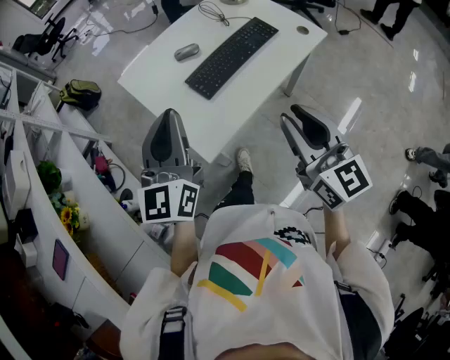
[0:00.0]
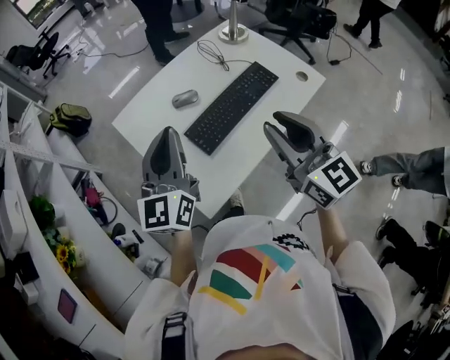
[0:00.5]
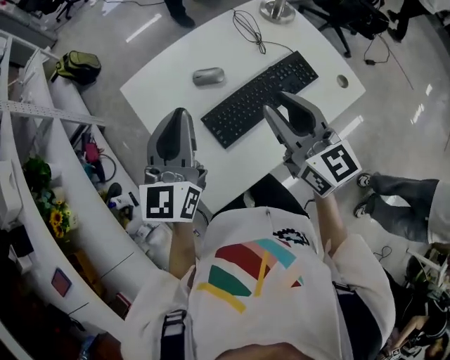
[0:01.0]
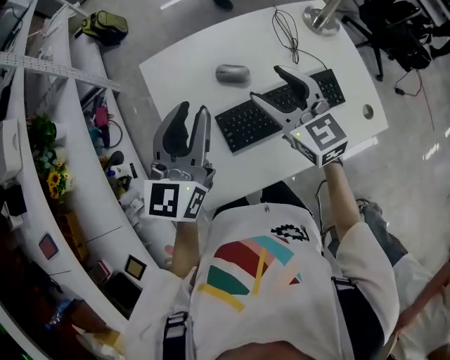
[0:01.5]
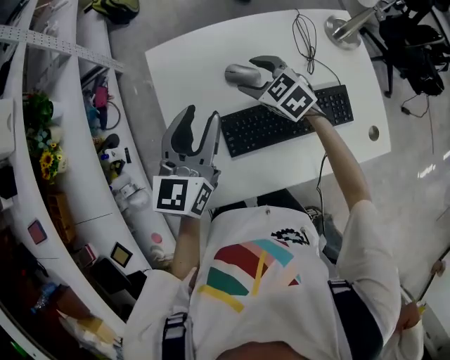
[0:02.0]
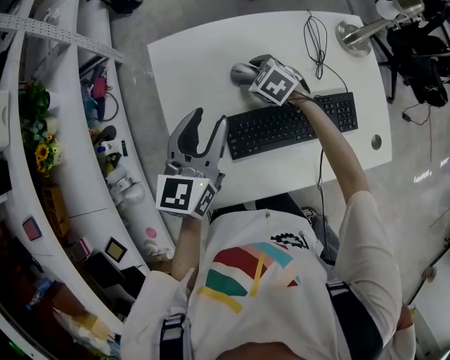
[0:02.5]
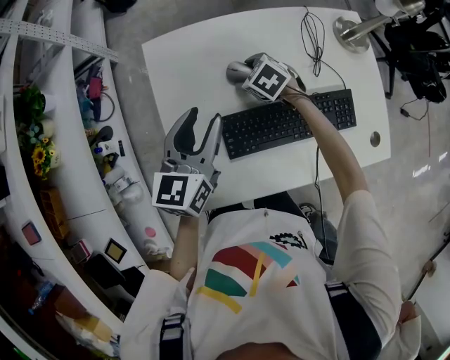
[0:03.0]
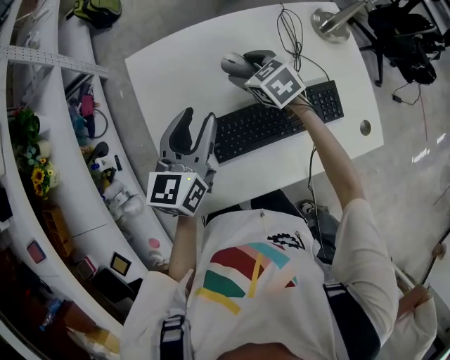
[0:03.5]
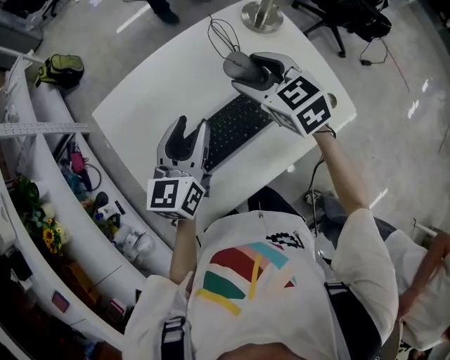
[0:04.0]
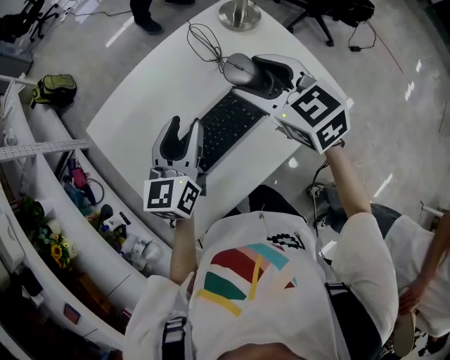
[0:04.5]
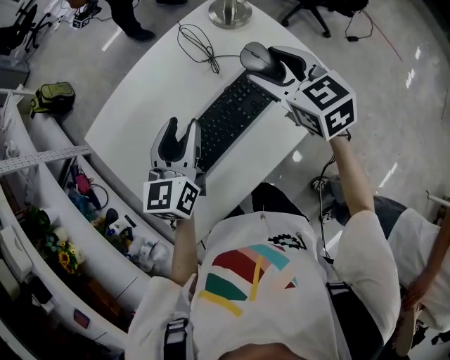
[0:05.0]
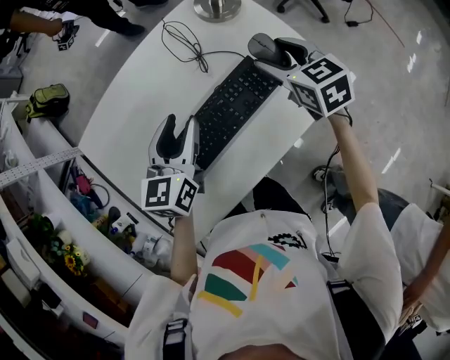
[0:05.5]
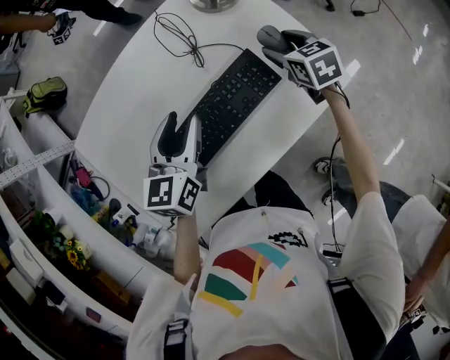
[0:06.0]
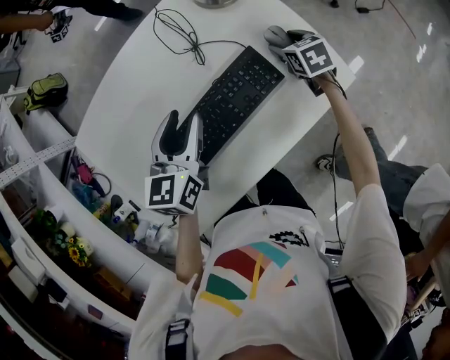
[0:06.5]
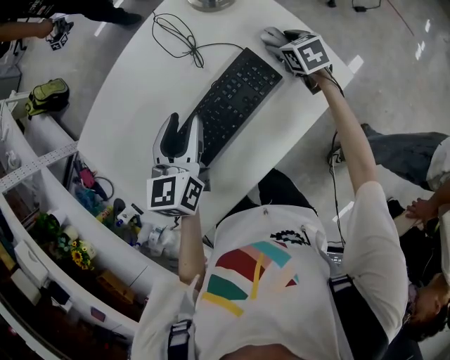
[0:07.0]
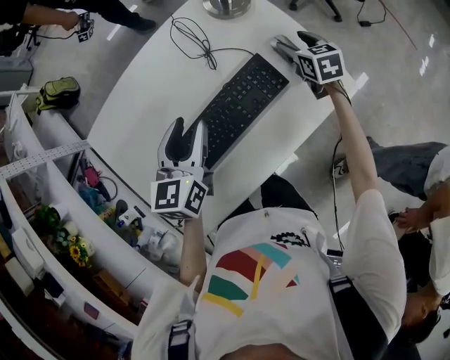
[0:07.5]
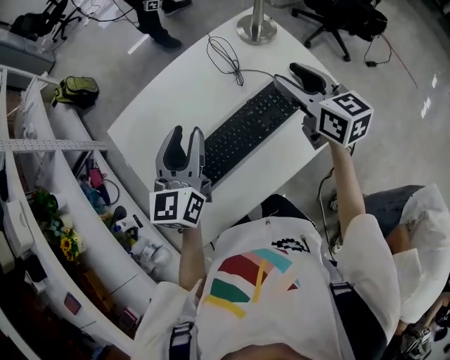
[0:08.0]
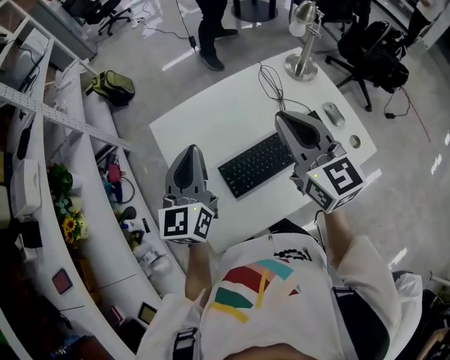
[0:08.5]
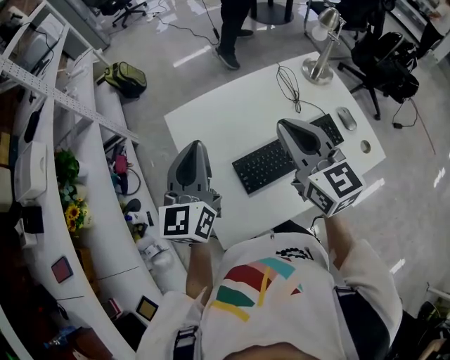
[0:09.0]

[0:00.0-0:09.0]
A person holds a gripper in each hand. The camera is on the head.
0:00.0 to 0:02.0: The right gripper changes place by some 50 cm, points its fingers about 40 degrees further downward, and opens. Meanwhile the left gripper ends up roughly 30 cm from where it was, turns by roughly 30 degrees, and opens.
0:02.0 to 0:04.5: The left gripper ends up roughly 15 cm from where it was, and rotates some 20 degrees. Meanwhile the right gripper changes place by roughly 25 cm, and turns by approximately 30 degrees.
0:04.5 to 0:07.0: The right gripper heads downward, to the right and forward, covering roughly 35 cm, and swivels about 30 degrees; the left gripper travels to the right and downward by approximately 10 cm.
0:07.0 to 0:09.0: The right gripper travels to the left, upward and backward by some 50 cm, tilts its fingers approximately 50 degrees upward, and closes its fingers. Meanwhile the left gripper shifts approximately 35 cm to the left, upward and backward, rotates about 30 degrees, and closes its fingers.

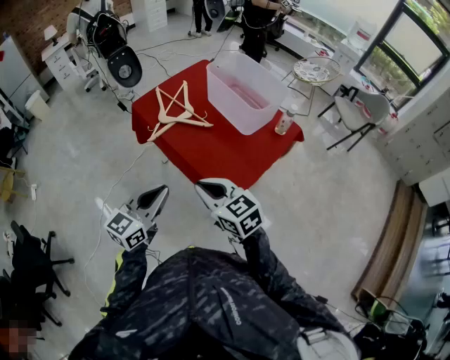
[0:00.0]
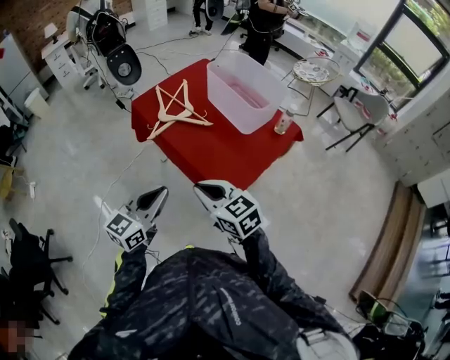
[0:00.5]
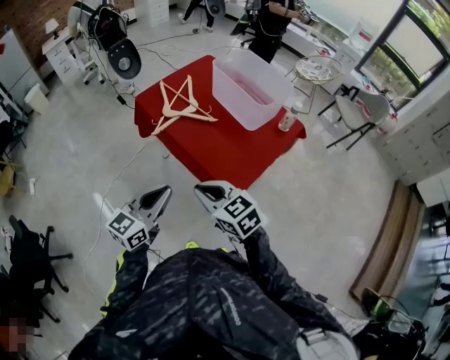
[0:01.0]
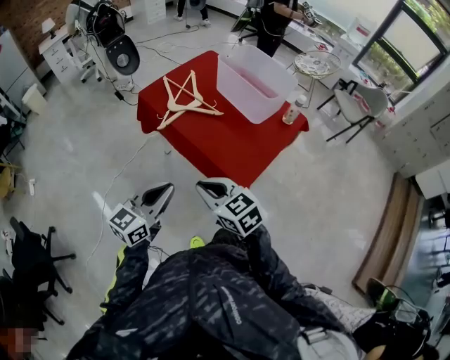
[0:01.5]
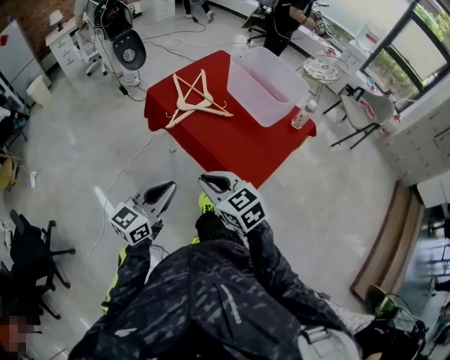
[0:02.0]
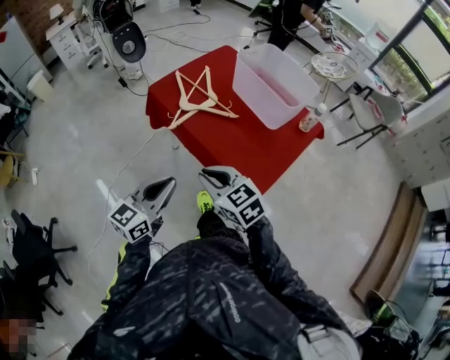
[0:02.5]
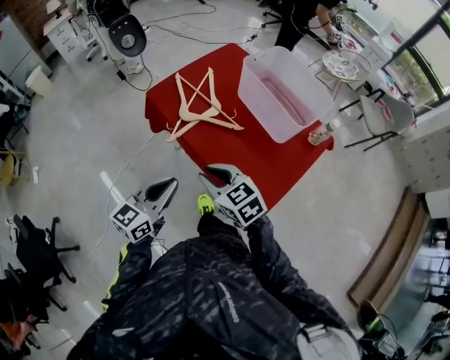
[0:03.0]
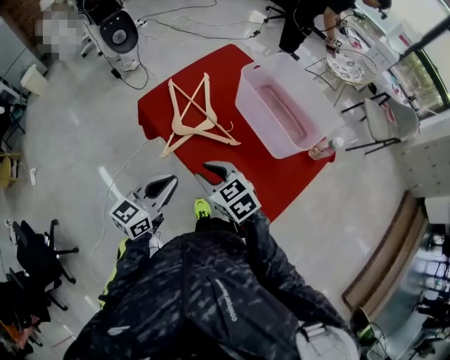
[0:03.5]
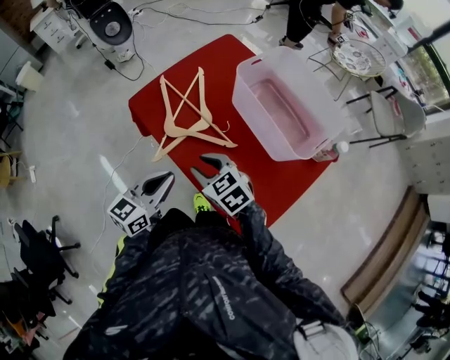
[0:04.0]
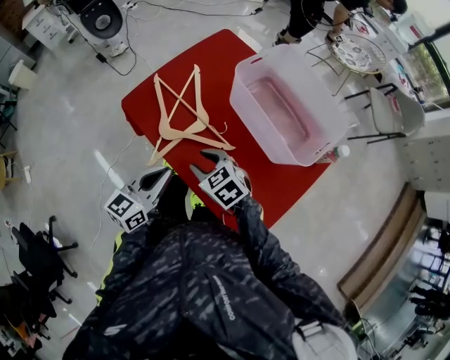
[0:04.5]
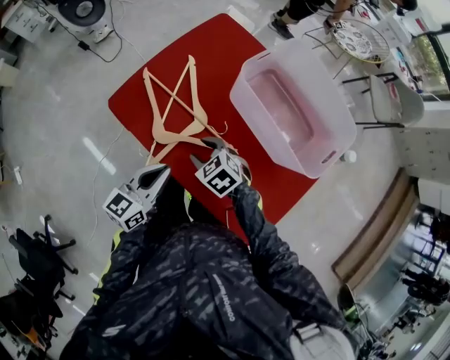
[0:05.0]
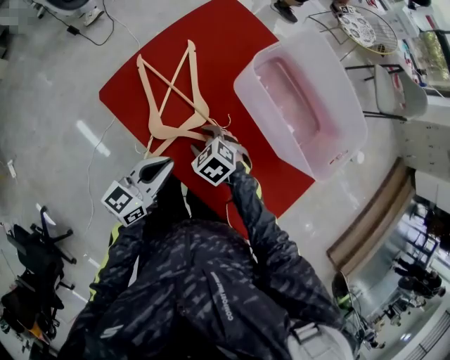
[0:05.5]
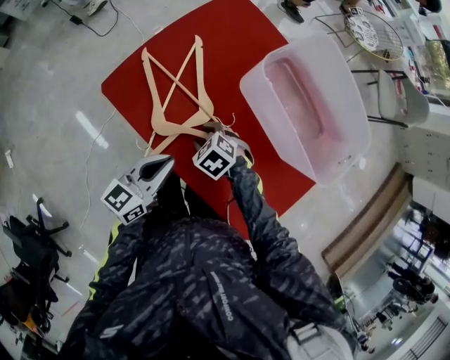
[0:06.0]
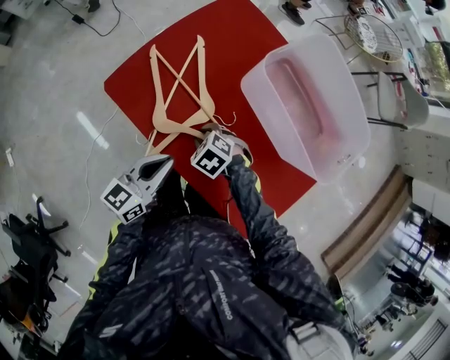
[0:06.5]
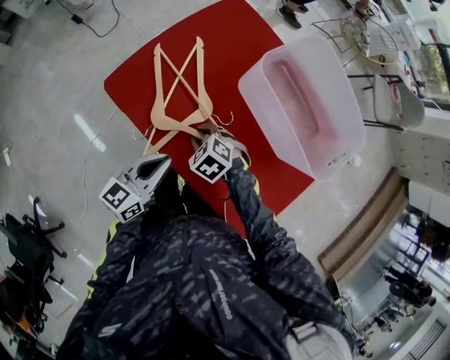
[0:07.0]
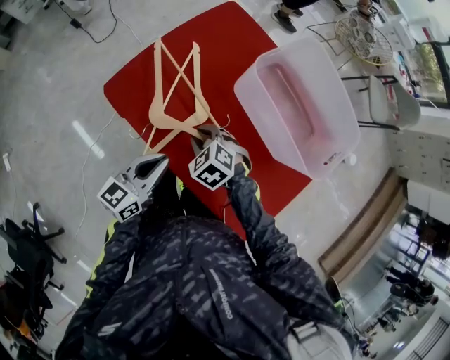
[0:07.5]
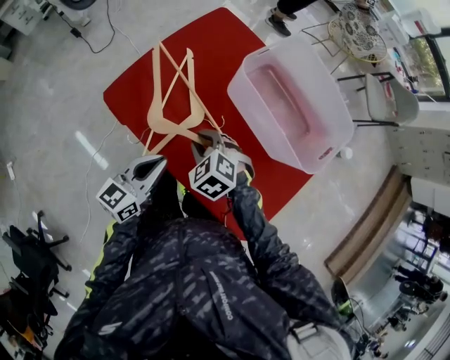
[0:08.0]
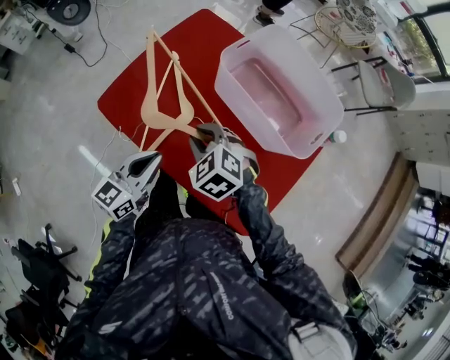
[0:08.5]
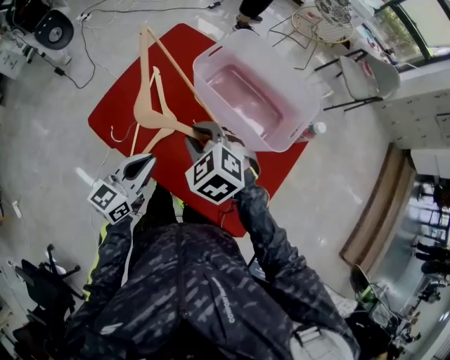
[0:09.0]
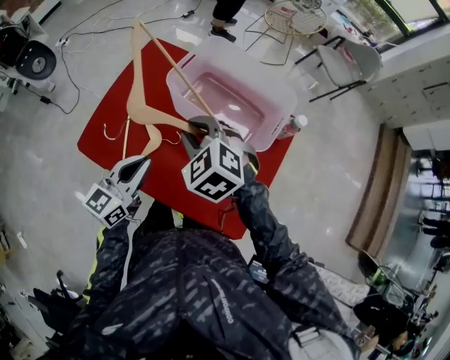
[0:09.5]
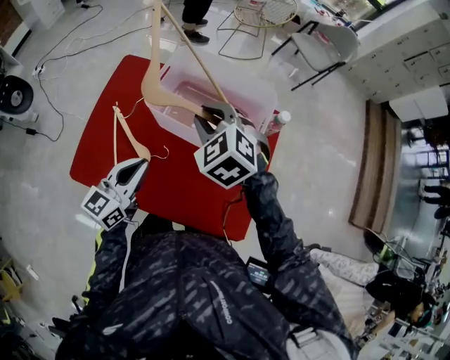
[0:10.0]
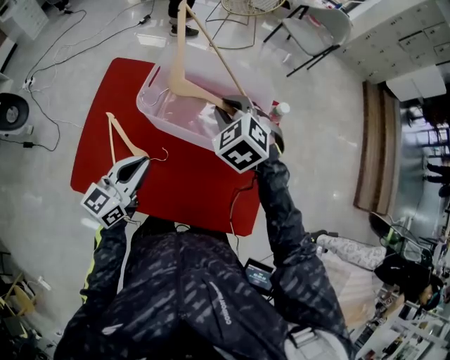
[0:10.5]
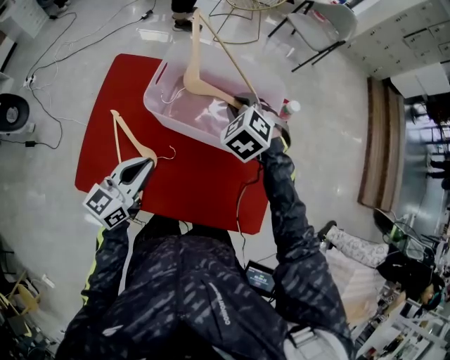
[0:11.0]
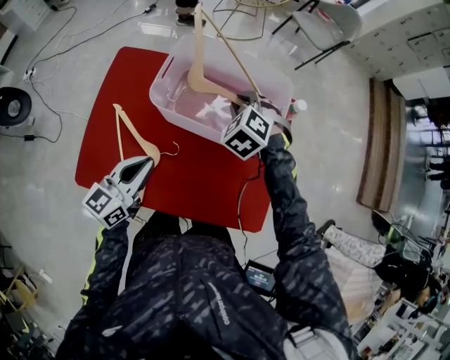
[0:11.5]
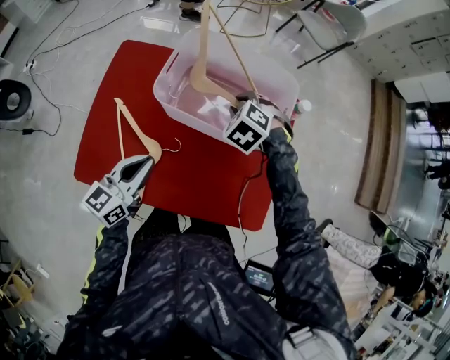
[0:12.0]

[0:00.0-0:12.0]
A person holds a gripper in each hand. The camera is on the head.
0:00.0 to 0:02.0: Both grippers travel together to the left, approximately 10 cm.
0:02.0 to 0:04.0: The two grippers go roughly 35 cm forward. The right gripper opens its fingers.
0:04.0 to 0:06.0: The right gripper travels downward and forward by approximately 25 cm, and changes its angle by approximately 30 degrees, while the left gripper travels forward and downward by about 15 cm.
0:06.0 to 0:08.0: The right gripper is displaced upward by some 10 cm, and closes.
0:08.0 to 0:10.0: The left gripper moves approximately 20 cm, and turns by some 20 degrees. The right gripper changes place by roughly 30 cm, and turns by about 30 degrees.
0:10.0 to 0:12.0: The left gripper ends up some 5 cm from where it was. Meanwhile the right gripper moves downward and forward, some 15 cm, and changes its angle by some 20 degrees.

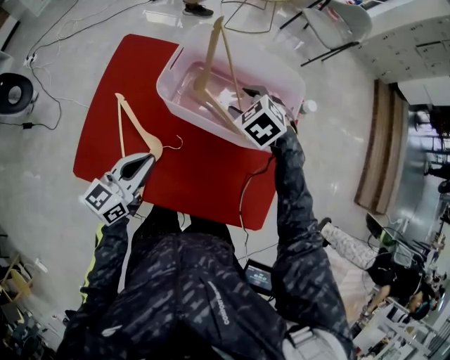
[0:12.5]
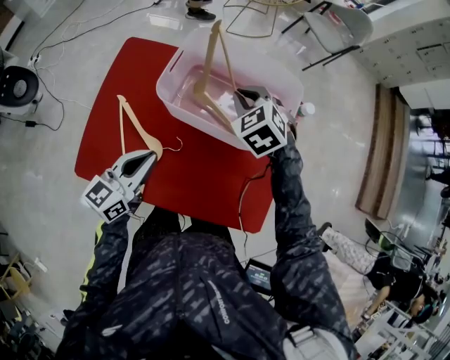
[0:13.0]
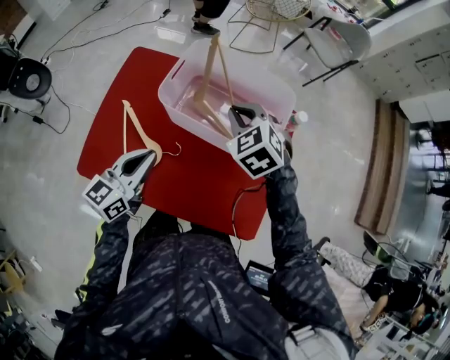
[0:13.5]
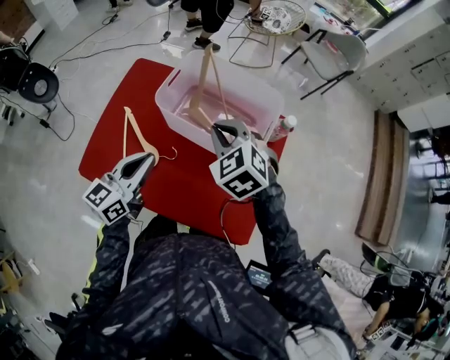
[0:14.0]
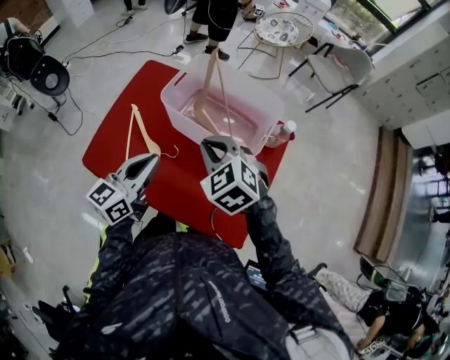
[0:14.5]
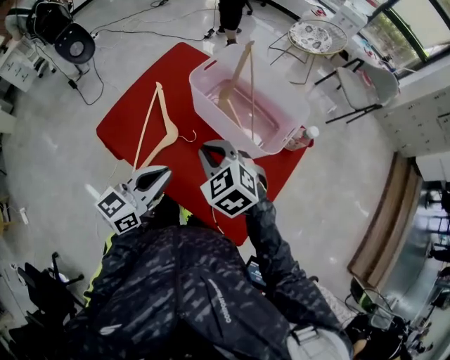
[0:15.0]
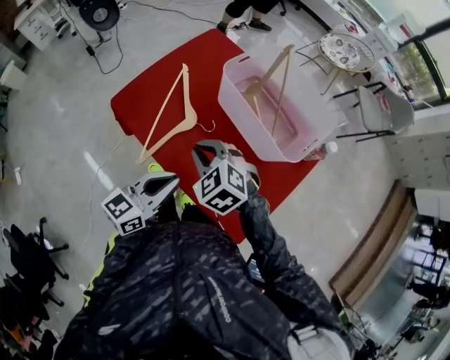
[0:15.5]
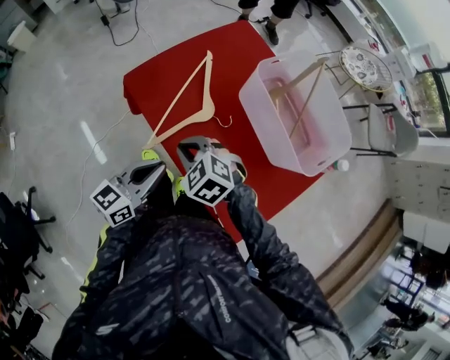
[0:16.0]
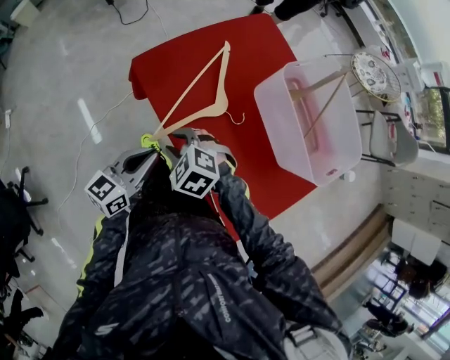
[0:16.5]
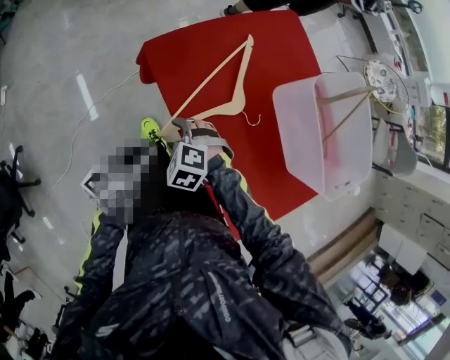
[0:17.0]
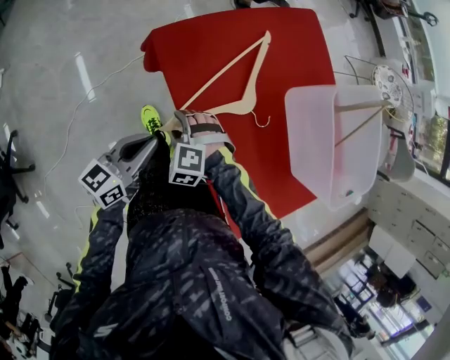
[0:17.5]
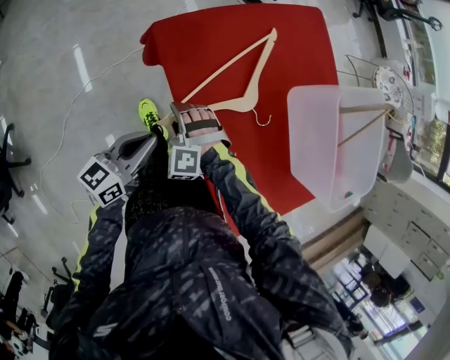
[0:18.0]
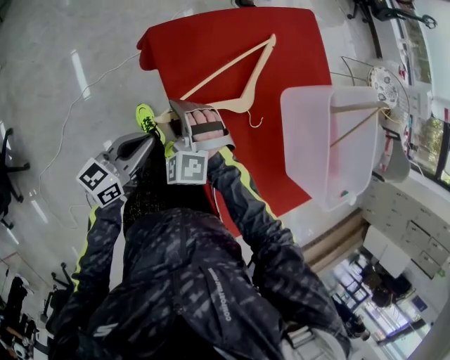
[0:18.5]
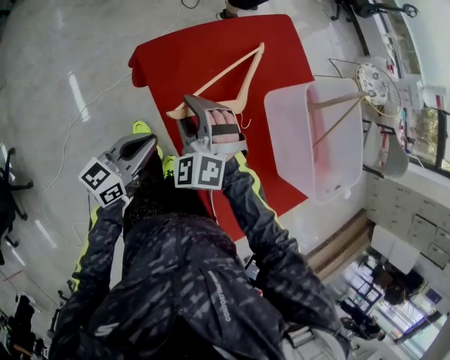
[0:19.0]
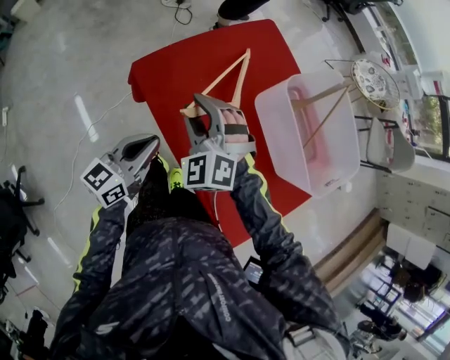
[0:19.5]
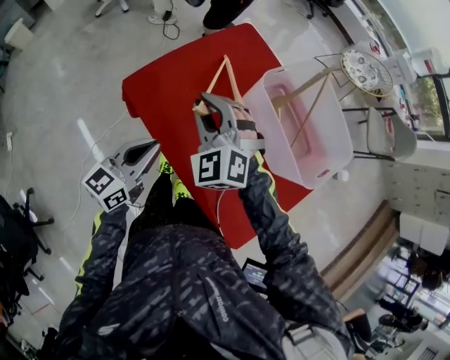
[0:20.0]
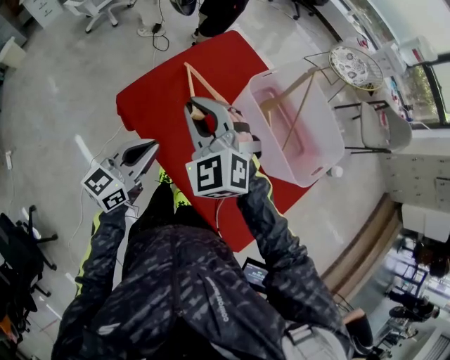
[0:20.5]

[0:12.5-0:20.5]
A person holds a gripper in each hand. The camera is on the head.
0:12.5 to 0:14.5: The left gripper travels upward and to the right by some 10 cm. Meanwhile the right gripper is displaced backward and upward by approximately 20 cm, changes its angle by about 20 degrees, and closes up.
0:14.5 to 0:16.5: The right gripper changes place by approximately 35 cm, rotates approximately 50 degrees, and opens its fingers, while the left gripper changes place by some 25 cm, and changes its angle by some 30 degrees.
0:16.5 to 0:18.5: The right gripper shifts about 10 cm forward and downward, and turns by some 40 degrees. The left gripper shifts roughly 5 cm downward.
0:18.5 to 0:20.5: The right gripper travels upward by some 25 cm, changes its angle by roughly 30 degrees, and closes up. Meanwhile the left gripper heads upward and to the right, covering about 15 cm, and turns by some 20 degrees.
